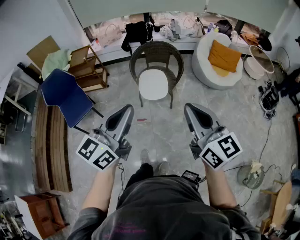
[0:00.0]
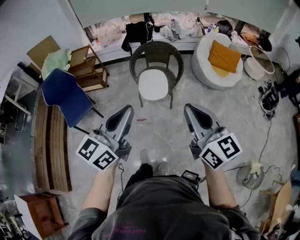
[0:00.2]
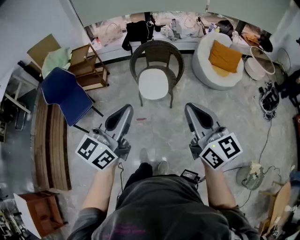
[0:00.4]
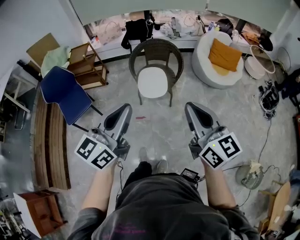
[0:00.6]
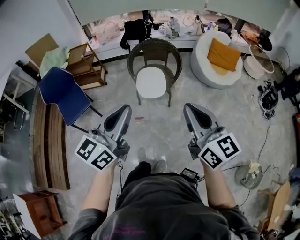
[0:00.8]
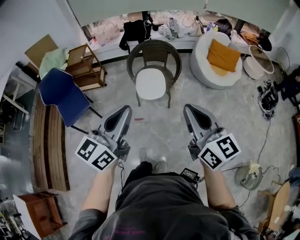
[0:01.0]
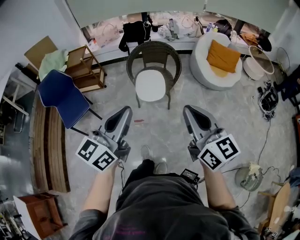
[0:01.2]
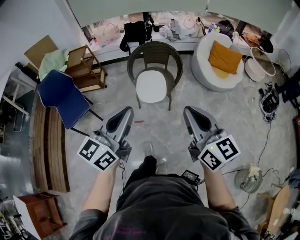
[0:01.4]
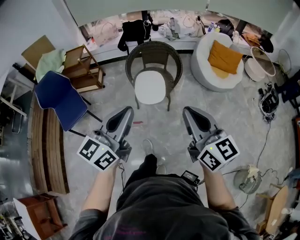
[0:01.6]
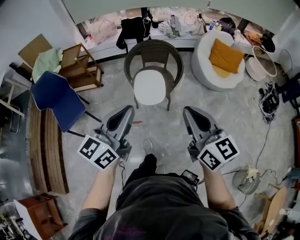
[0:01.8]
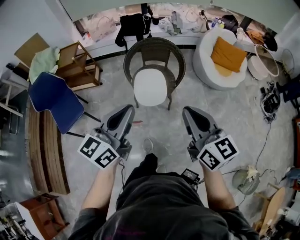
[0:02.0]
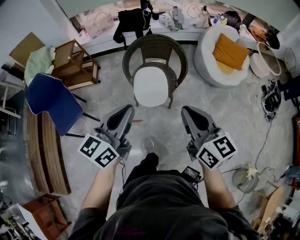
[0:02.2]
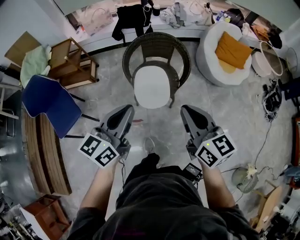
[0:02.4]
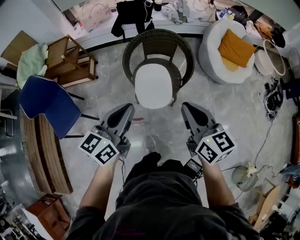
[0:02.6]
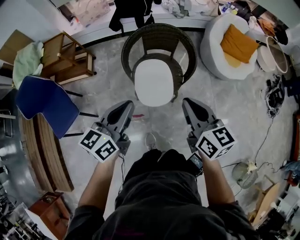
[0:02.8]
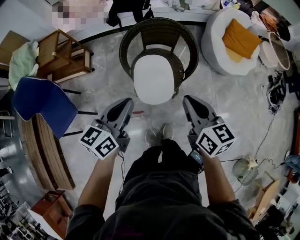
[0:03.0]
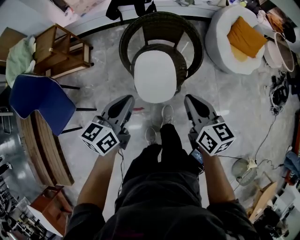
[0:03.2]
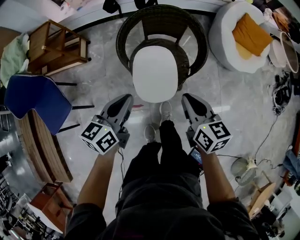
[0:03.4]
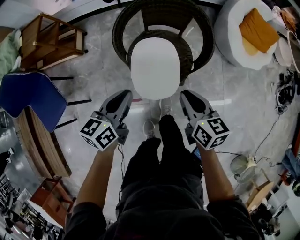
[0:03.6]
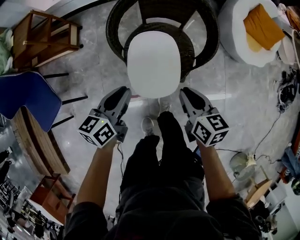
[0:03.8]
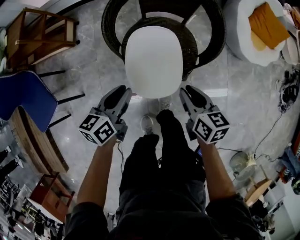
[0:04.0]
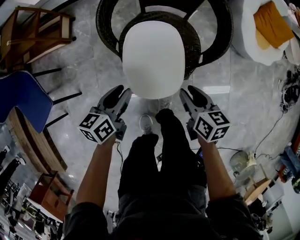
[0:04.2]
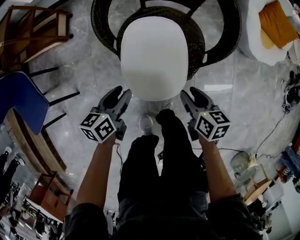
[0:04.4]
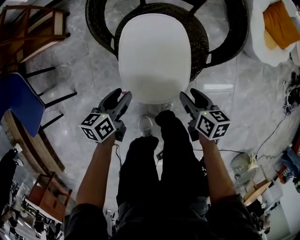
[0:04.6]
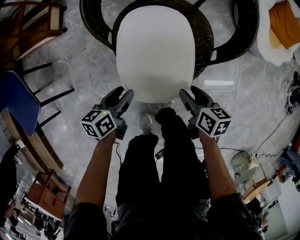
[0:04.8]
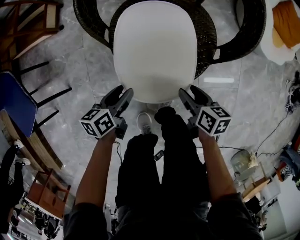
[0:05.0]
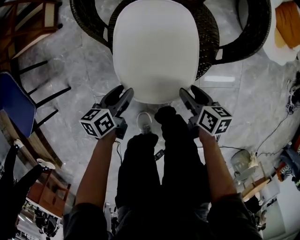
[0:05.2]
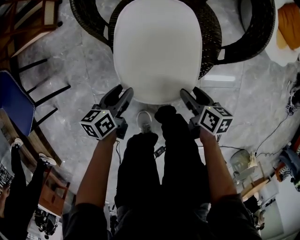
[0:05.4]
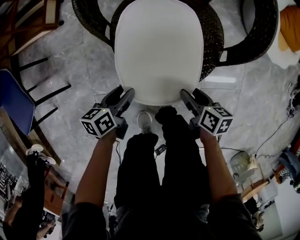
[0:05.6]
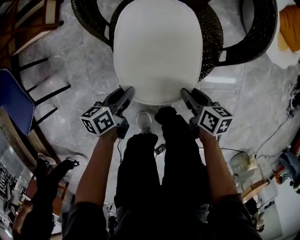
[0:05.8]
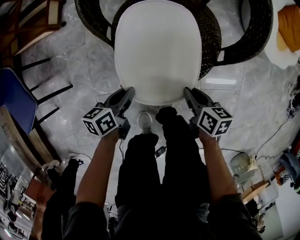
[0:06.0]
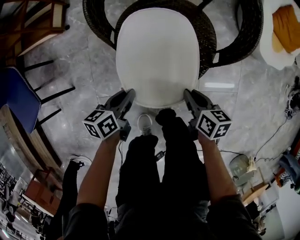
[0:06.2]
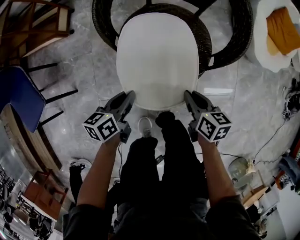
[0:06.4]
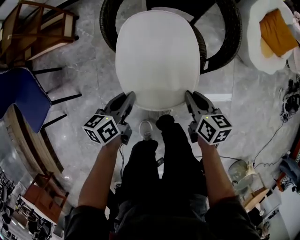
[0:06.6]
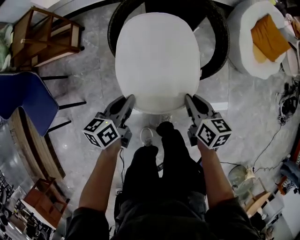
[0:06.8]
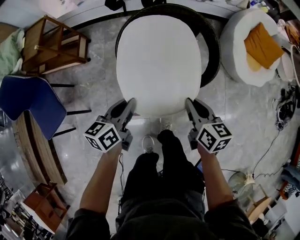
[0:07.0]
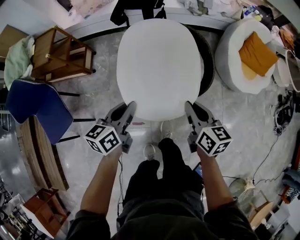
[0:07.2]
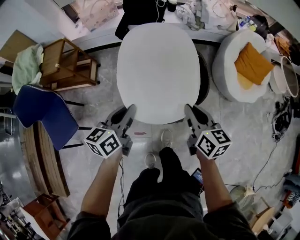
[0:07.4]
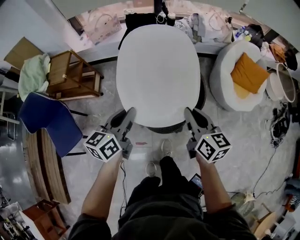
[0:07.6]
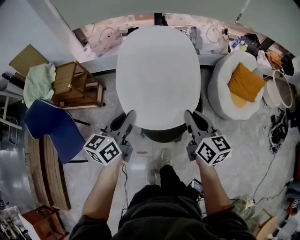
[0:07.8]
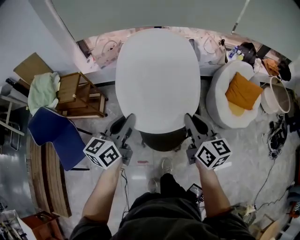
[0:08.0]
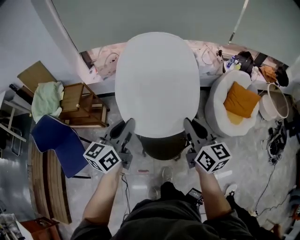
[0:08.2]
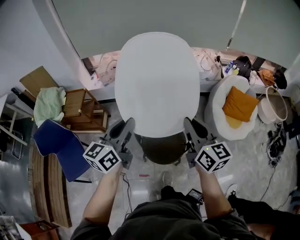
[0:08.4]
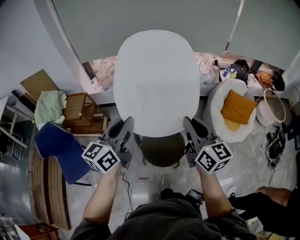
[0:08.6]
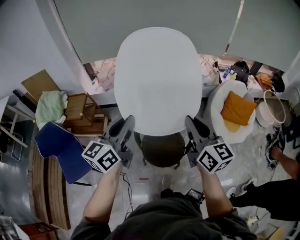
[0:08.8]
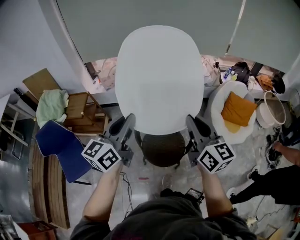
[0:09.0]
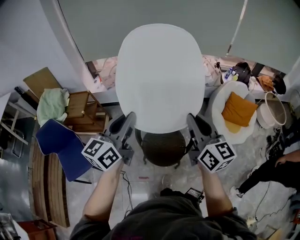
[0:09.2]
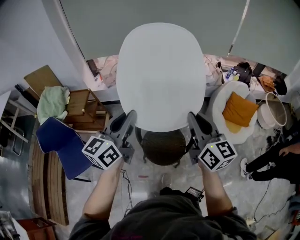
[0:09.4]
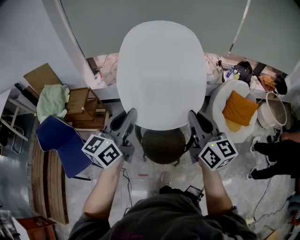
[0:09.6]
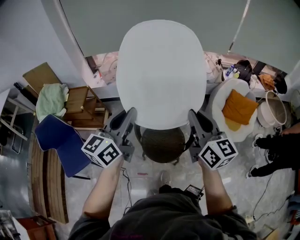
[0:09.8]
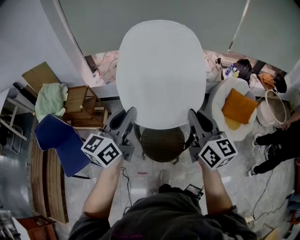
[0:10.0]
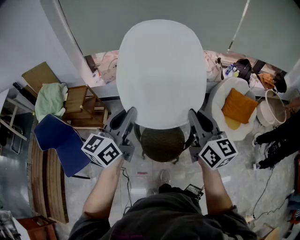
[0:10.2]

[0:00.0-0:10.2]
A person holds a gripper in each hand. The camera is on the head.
0.0 to 1.4 s: The left gripper changes place by approximately 5 cm. Meanwhile the right gripper changes place by roughly 5 cm.
1.4 to 3.0 s: Both grippers travel together forward and downward, some 40 cm. The left gripper turns by about 20 degrees, while the right gripper swivels about 20 degrees.
3.0 to 4.4 s: Both grippers move downward, some 40 cm. The right gripper swivels about 30 degrees, and opens its fingers, while the left gripper changes its angle by about 30 degrees, and opens up.
4.4 to 5.8 s: Both grippers move downward, some 15 cm.
5.8 to 7.2 s: The grippers both shift upward by roughly 40 cm. The right gripper rotates about 30 degrees, and closes up. Meanwhile the left gripper swivels roughly 30 degrees.
7.2 to 8.8 s: Both grippers move upward, roughly 40 cm. The right gripper rotates about 30 degrees, while the left gripper rotates about 30 degrees.
8.8 to 10.2 s: The grippers stay close to where they were, moving slightly.

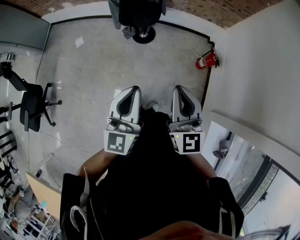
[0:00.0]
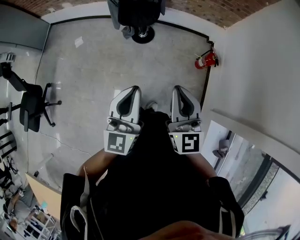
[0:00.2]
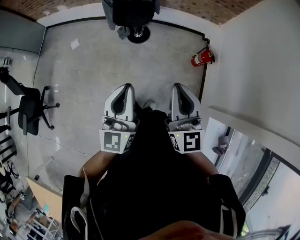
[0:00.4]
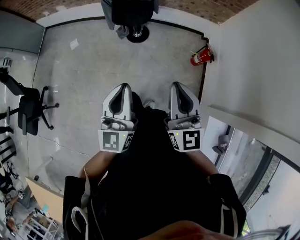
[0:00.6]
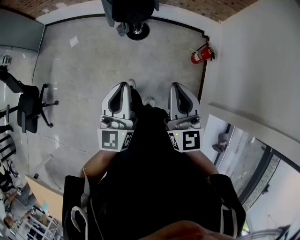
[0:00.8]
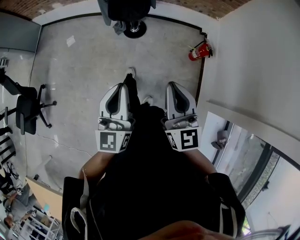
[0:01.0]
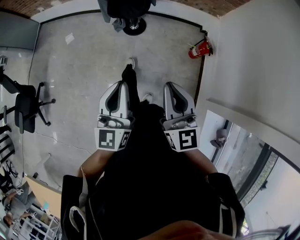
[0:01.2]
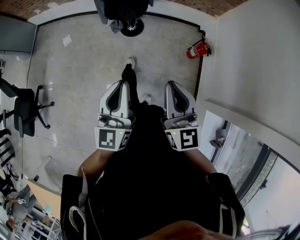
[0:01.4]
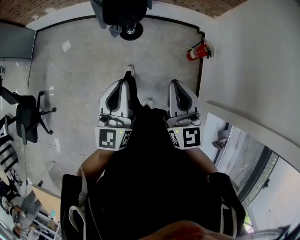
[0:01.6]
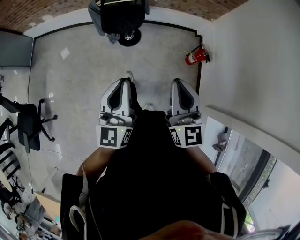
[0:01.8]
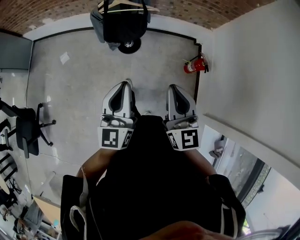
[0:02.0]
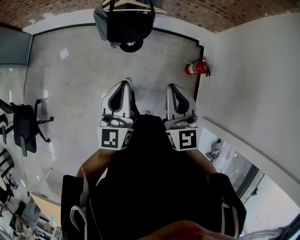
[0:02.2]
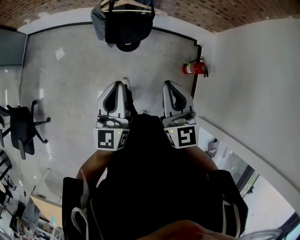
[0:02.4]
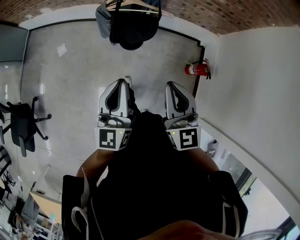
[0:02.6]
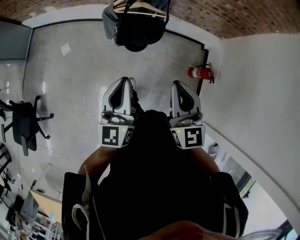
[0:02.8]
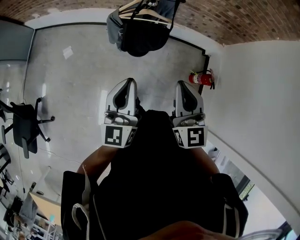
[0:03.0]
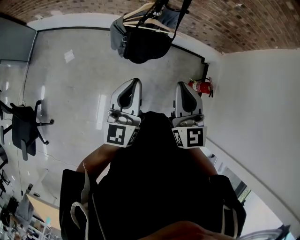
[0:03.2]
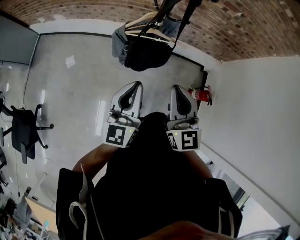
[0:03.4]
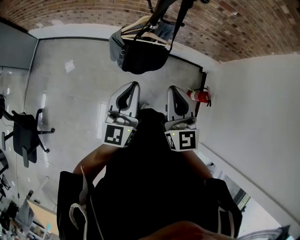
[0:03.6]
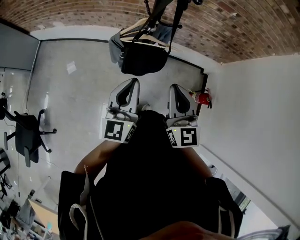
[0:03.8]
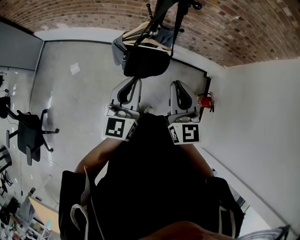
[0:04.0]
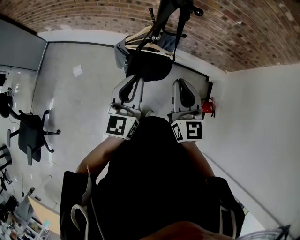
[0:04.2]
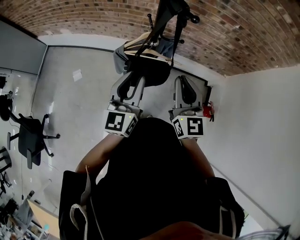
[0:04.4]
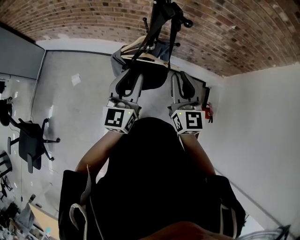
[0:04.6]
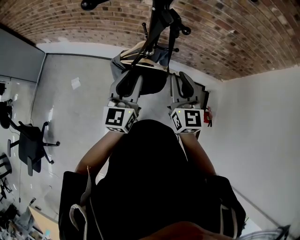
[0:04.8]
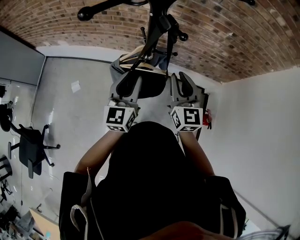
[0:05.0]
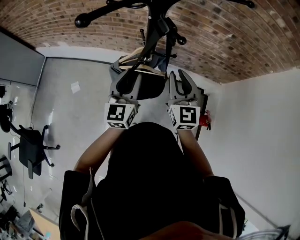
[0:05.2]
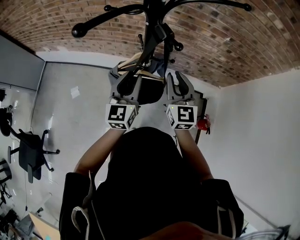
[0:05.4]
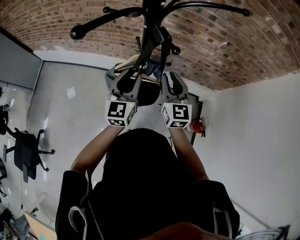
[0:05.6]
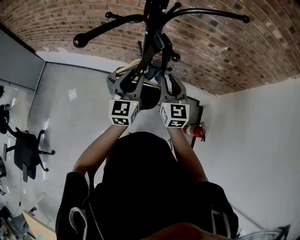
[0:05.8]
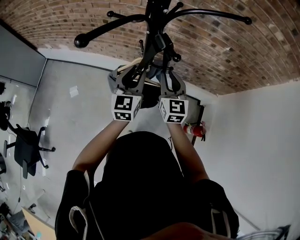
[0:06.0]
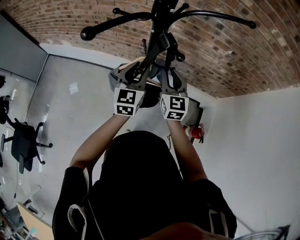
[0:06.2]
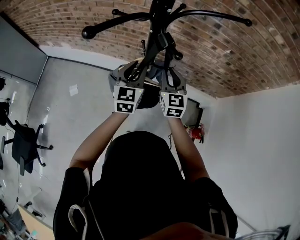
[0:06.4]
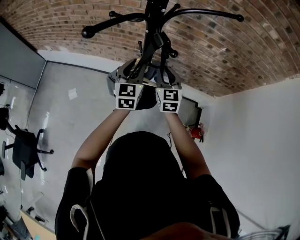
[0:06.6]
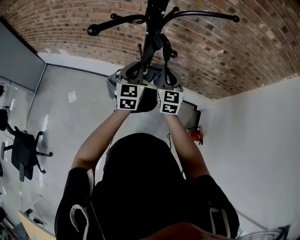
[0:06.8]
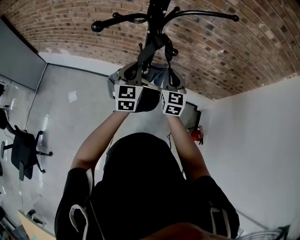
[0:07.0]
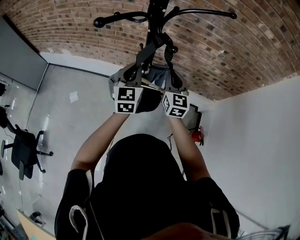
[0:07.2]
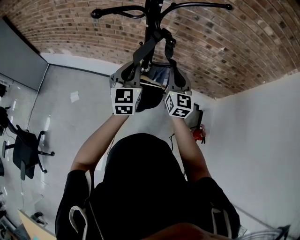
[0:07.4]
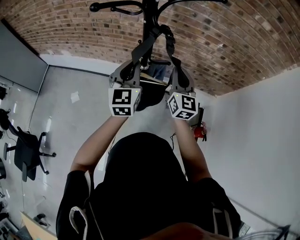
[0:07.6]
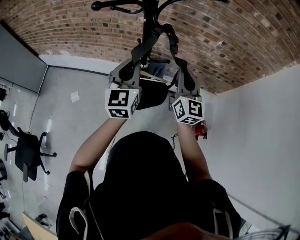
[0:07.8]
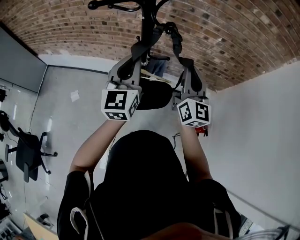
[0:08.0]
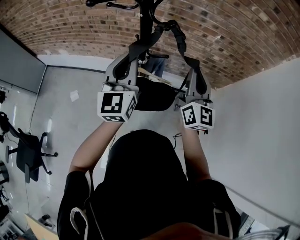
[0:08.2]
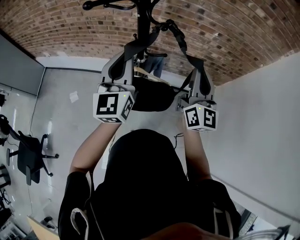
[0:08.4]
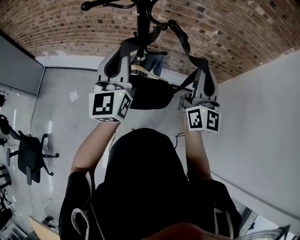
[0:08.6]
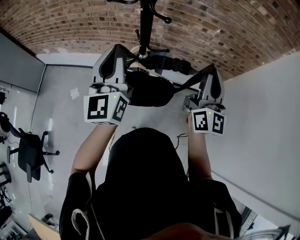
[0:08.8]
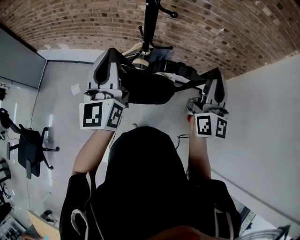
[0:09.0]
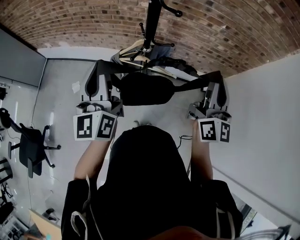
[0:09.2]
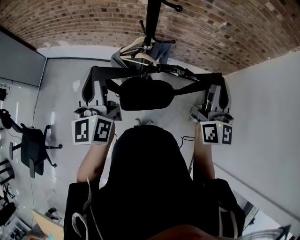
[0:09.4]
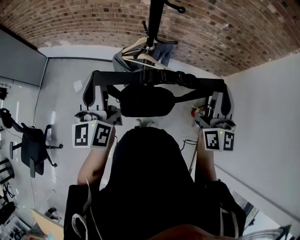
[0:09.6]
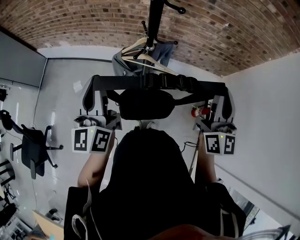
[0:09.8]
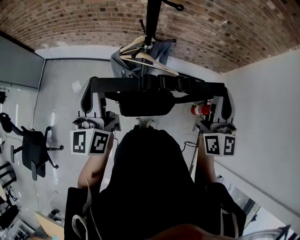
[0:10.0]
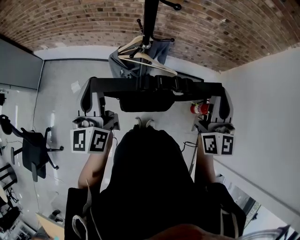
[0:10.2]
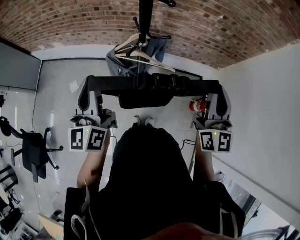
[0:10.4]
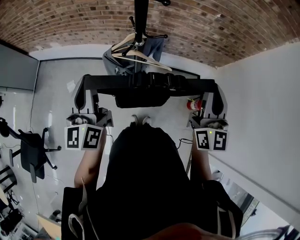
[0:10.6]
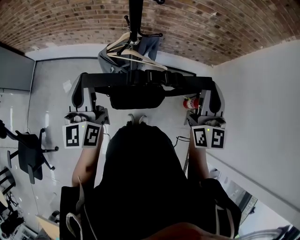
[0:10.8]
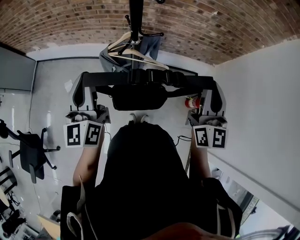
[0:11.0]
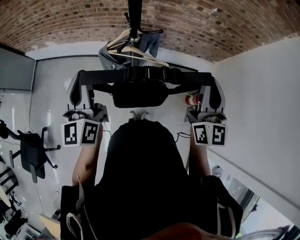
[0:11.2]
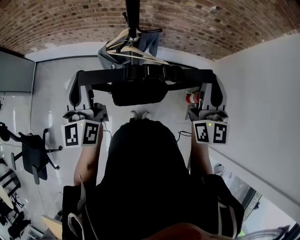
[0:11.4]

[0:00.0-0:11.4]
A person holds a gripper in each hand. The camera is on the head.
0.0 to 1.4 s: The grippers make only small movements.
1.4 to 2.8 s: The grippers both shift forward by roughly 30 cm.
2.8 to 4.2 s: The two grippers go approximately 15 cm forward.
4.2 to 5.6 s: Both grippers move forward, roughly 15 cm. The left gripper opens its fingers.
5.6 to 7.2 s: The left gripper closes.
7.2 to 8.6 s: The right gripper is displaced upward, backward and to the right by some 20 cm, and rotates approximately 30 degrees. The left gripper moves upward and backward, about 15 cm, and changes its angle by roughly 20 degrees.
8.6 to 10.0 s: The left gripper moves to the left and backward, roughly 15 cm, while the right gripper heads backward, covering approximately 10 cm.
10.0 to 11.4 s: There are only small adjustments of the grippers.

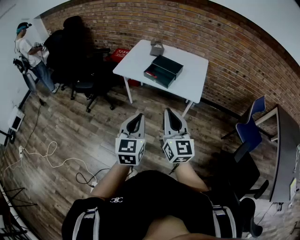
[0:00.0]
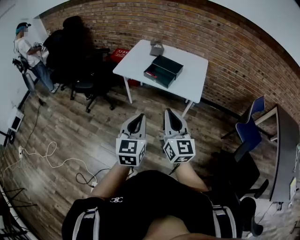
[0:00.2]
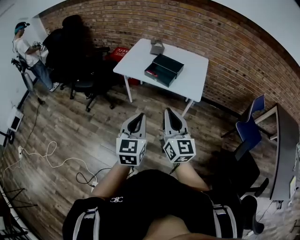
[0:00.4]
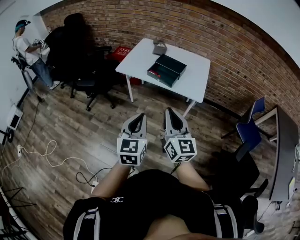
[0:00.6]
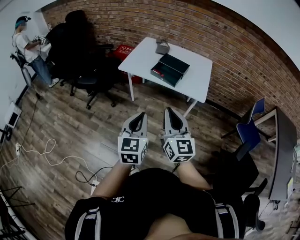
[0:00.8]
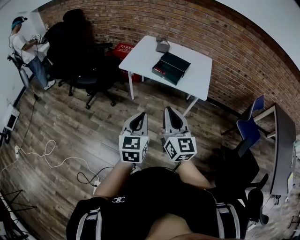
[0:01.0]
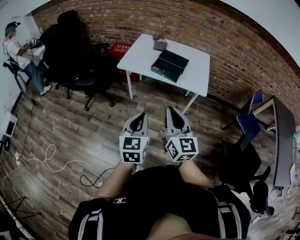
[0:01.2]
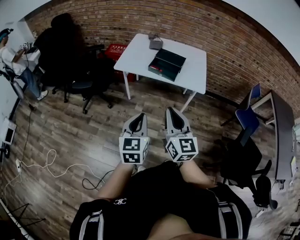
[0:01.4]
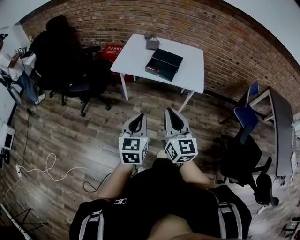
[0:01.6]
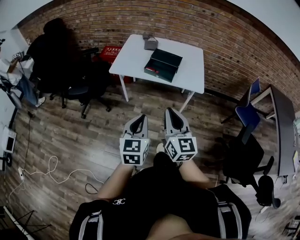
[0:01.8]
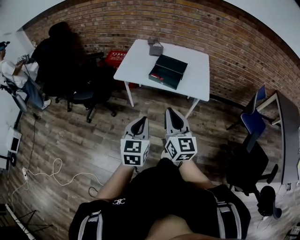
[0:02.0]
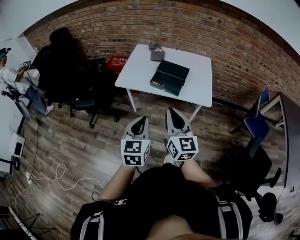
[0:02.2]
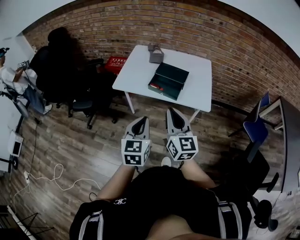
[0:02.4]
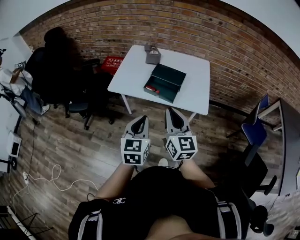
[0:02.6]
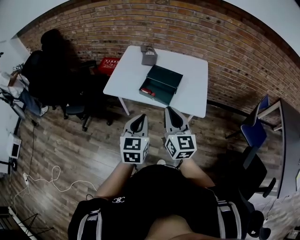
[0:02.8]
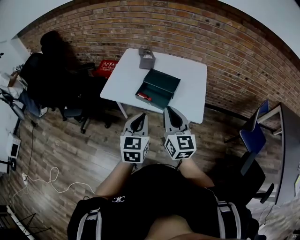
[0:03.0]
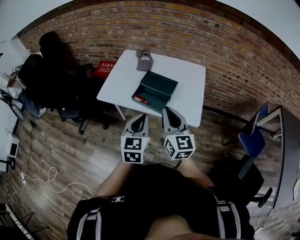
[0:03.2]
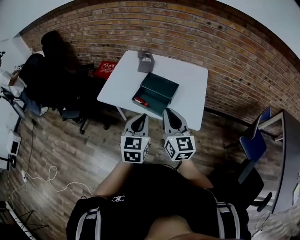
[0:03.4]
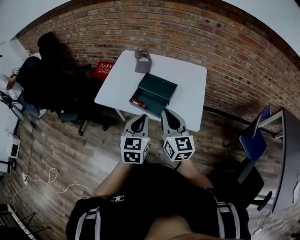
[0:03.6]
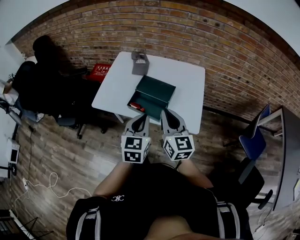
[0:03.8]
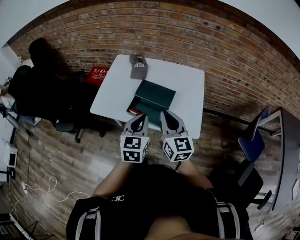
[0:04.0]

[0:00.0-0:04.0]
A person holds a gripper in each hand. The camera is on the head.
0.0 to 1.4 s: The two grippers go roughly 10 cm to the left.
1.4 to 2.6 s: The grippers both shift forward by approximately 20 cm.
2.6 to 4.0 s: The grippers both shift forward and to the right by roughly 20 cm.
